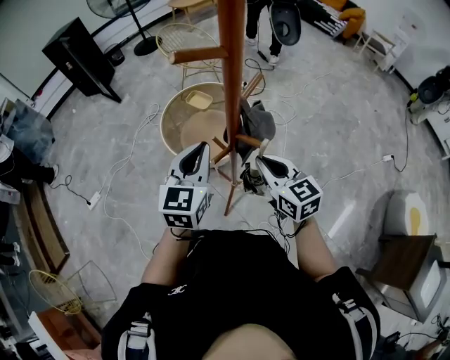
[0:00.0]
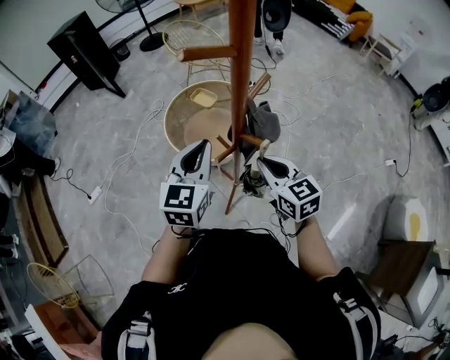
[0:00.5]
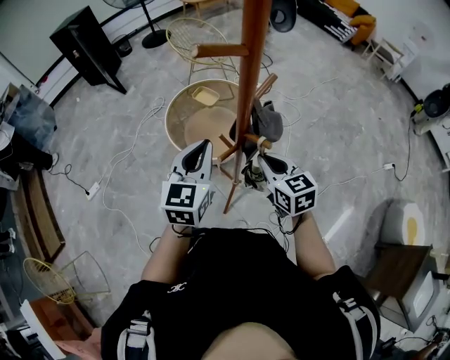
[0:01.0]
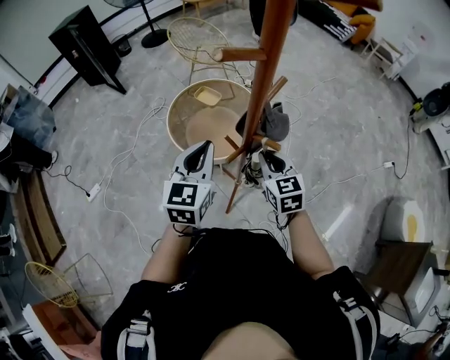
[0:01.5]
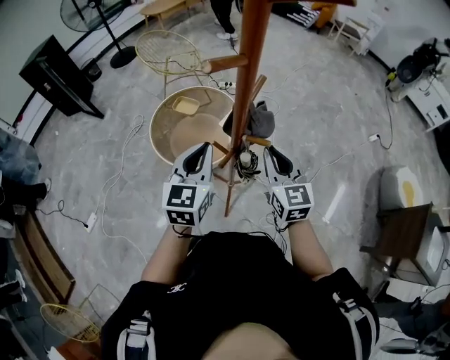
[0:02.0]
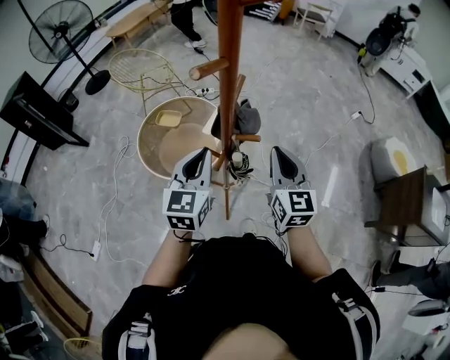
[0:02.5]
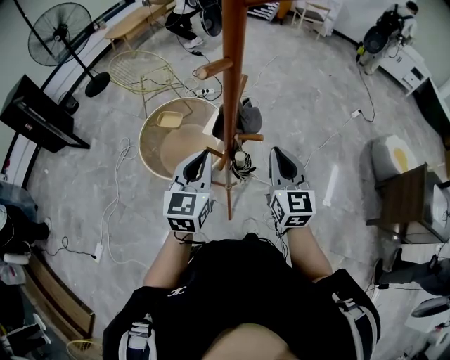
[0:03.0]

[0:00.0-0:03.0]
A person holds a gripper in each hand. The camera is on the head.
0:00.0 to 0:01.5: The right gripper shifts by approximately 5 cm.
0:01.5 to 0:03.0: The right gripper goes some 10 cm upward, and swivels approximately 40 degrees; the left gripper rotates approximately 20 degrees.

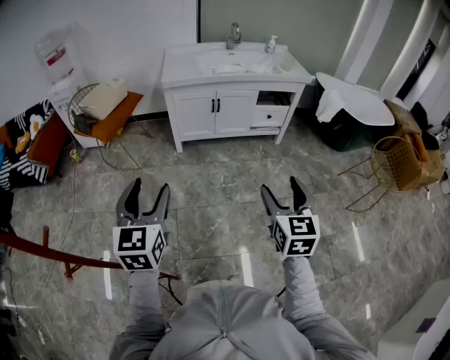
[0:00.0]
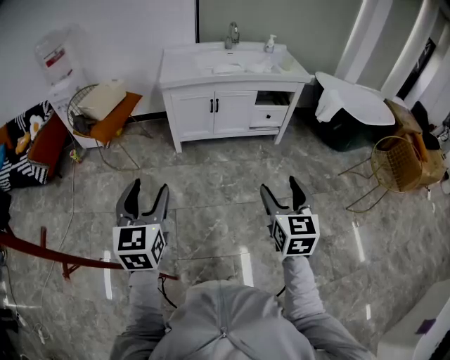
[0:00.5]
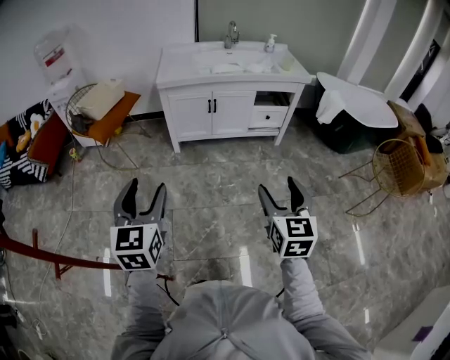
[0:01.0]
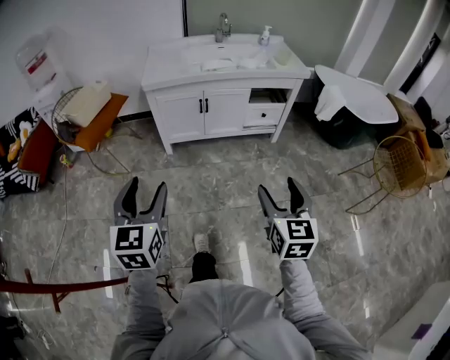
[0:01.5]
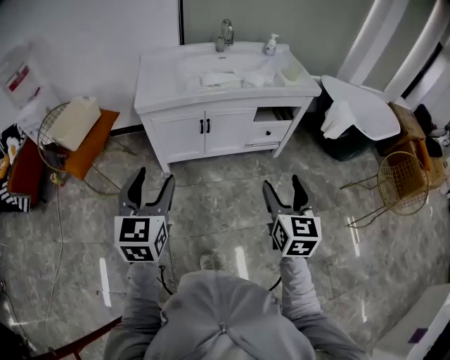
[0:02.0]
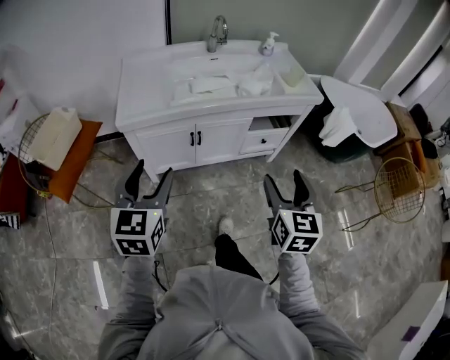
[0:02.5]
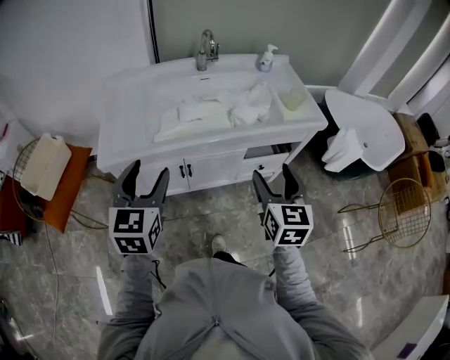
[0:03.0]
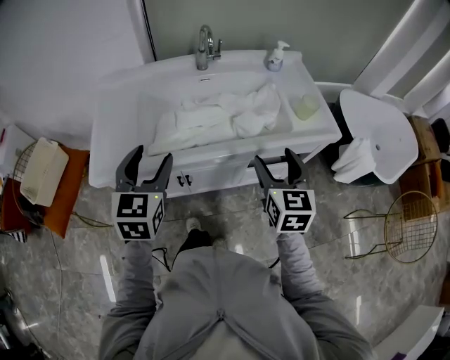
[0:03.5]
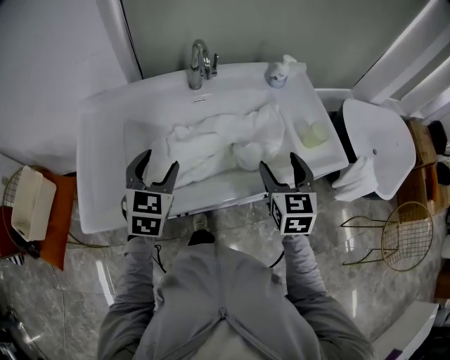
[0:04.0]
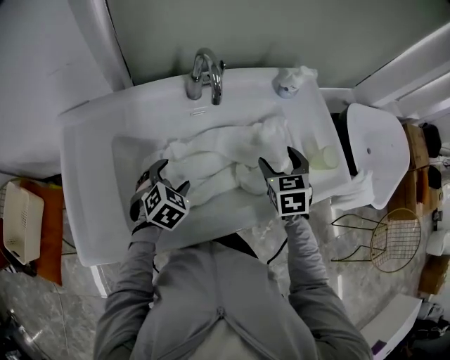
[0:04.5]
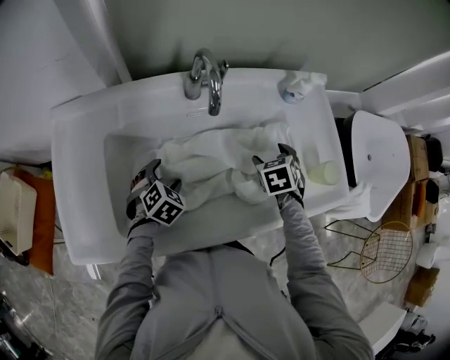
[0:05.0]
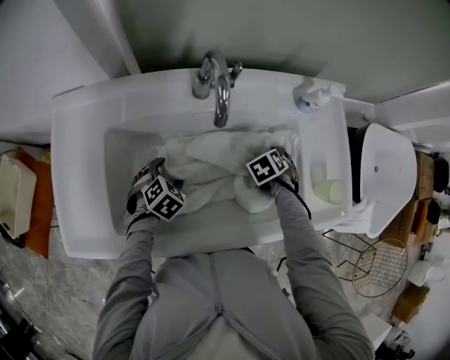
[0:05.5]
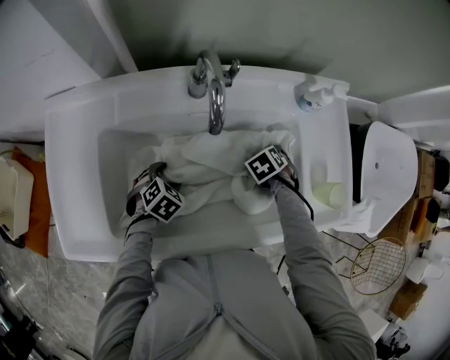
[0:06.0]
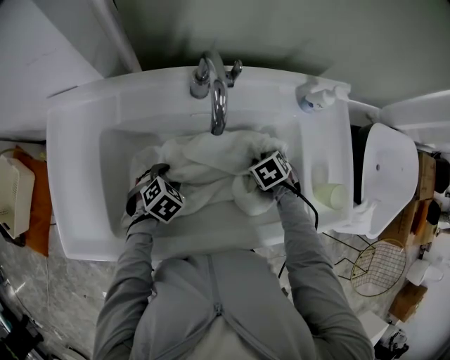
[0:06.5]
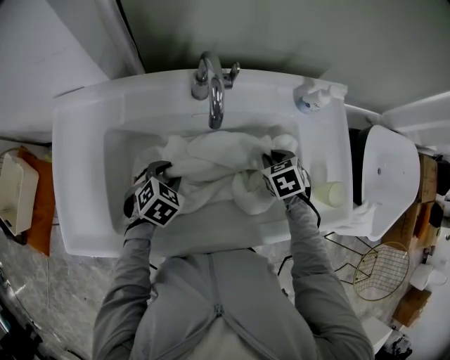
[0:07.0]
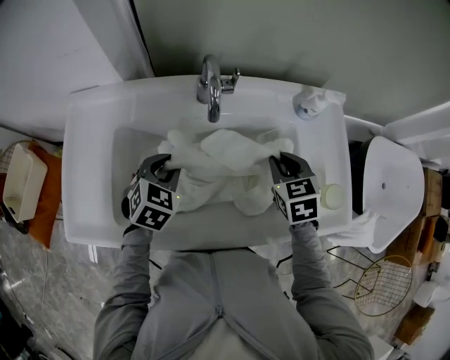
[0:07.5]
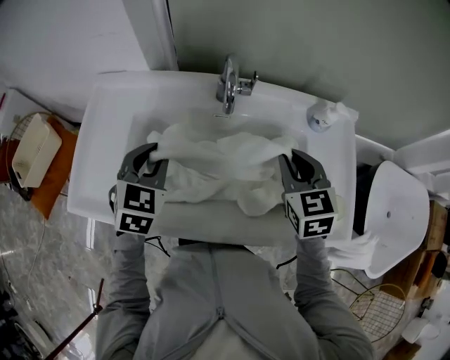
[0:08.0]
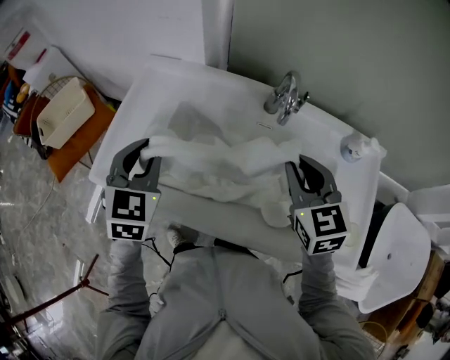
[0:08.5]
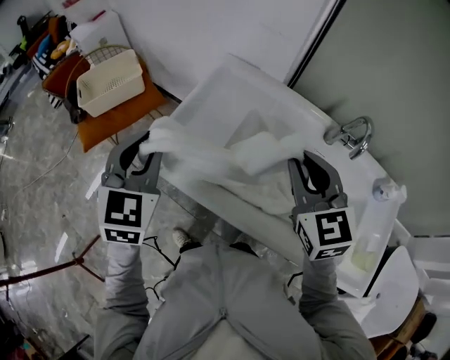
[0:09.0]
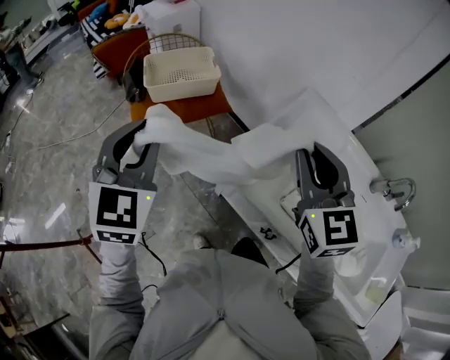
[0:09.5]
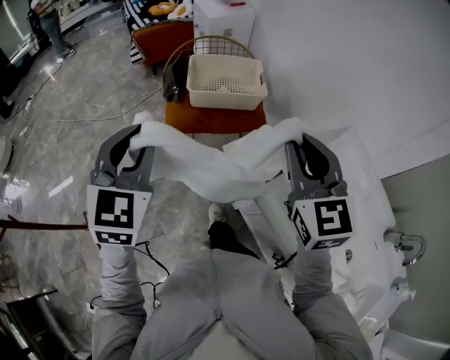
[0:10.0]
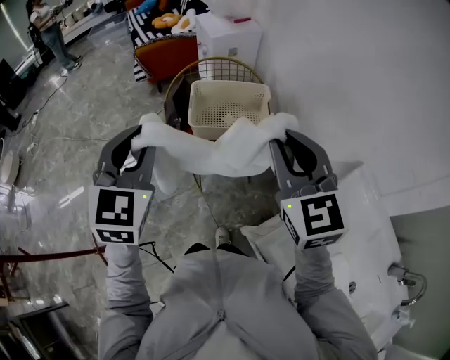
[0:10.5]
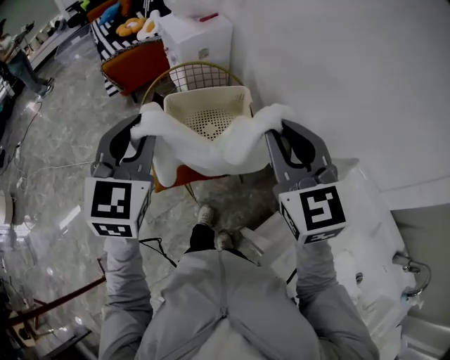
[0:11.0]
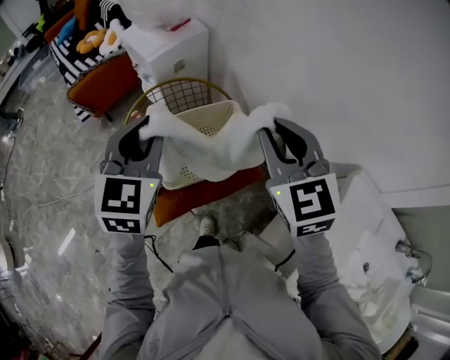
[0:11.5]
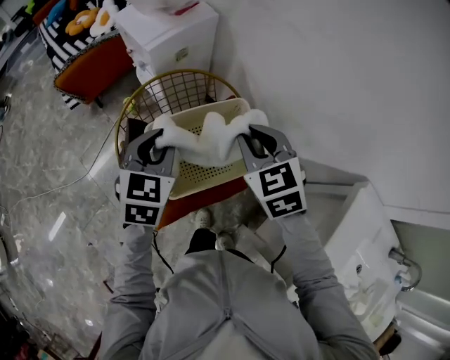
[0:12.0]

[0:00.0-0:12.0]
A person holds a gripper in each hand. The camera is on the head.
0:00.0 to 0:02.0: Both grippers travel together forward, some 30 cm.
0:02.0 to 0:04.0: The two grippers travel together, forward, some 60 cm.
0:04.0 to 0:06.0: Both grippers travel together downward, some 25 cm. The right gripper tilts its fingers about 60 degrees downward. Meanwhile the left gripper tips its fingers downward by some 40 degrees.
0:06.0 to 0:08.0: Both grippers travel together upward, roughly 25 cm. The right gripper tips its fingers upward by about 50 degrees, and closes. Meanwhile the left gripper angles its fingers upward, by approximately 30 degrees, and closes its fingers.
0:08.0 to 0:10.0: The pair of grippers is taken roughly 70 cm. The left gripper turns by about 60 degrees. Meanwhile the right gripper changes its angle by approximately 60 degrees.
0:10.0 to 0:12.0: The pair of grippers is taken forward, about 50 cm. The left gripper rotates roughly 30 degrees. The right gripper changes its angle by about 30 degrees.

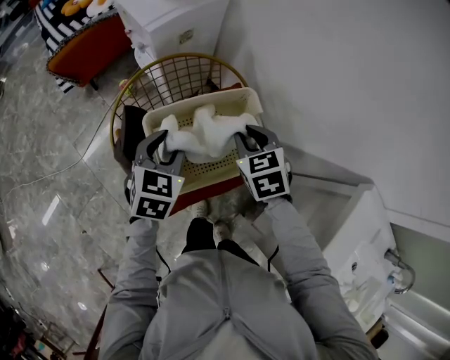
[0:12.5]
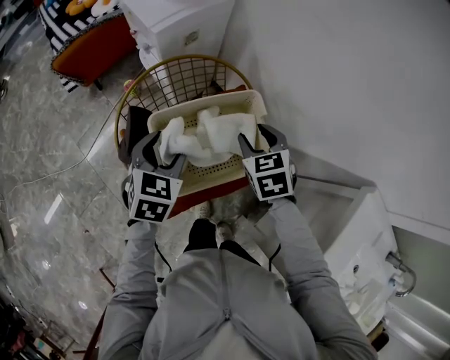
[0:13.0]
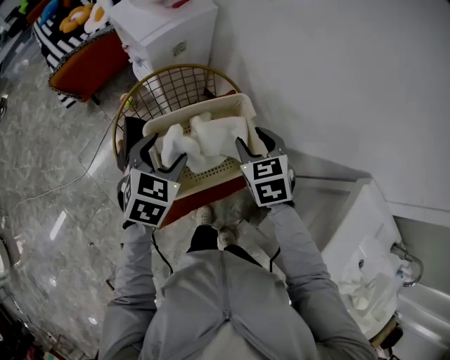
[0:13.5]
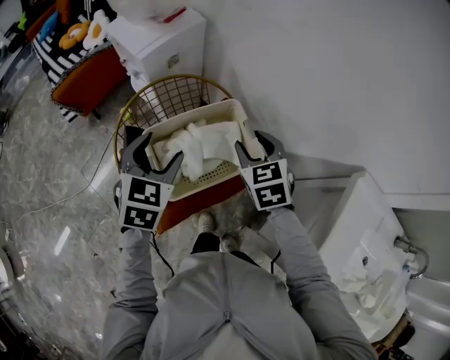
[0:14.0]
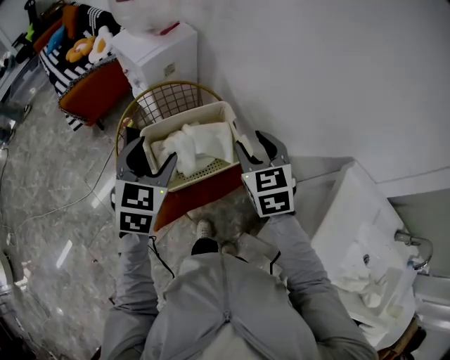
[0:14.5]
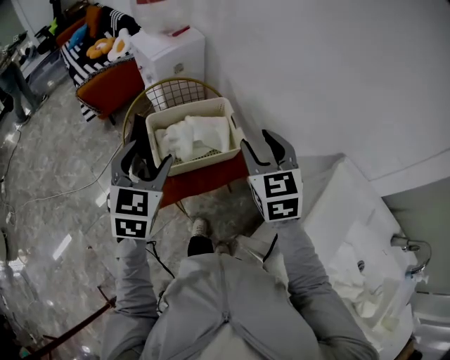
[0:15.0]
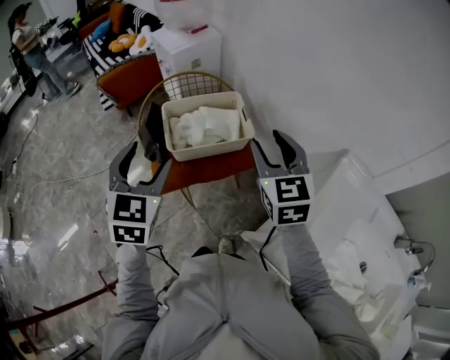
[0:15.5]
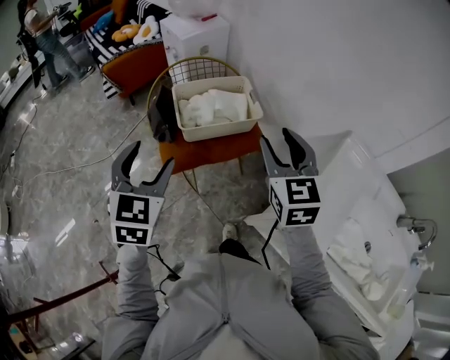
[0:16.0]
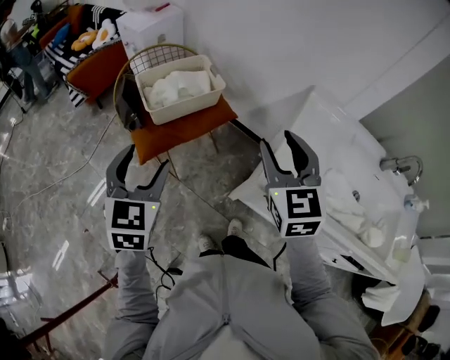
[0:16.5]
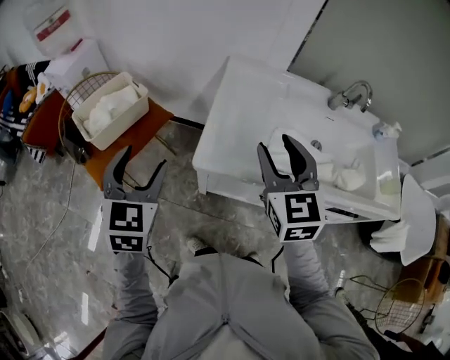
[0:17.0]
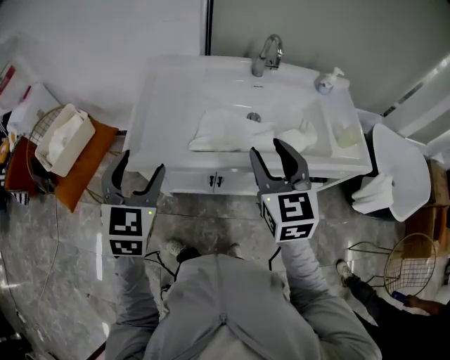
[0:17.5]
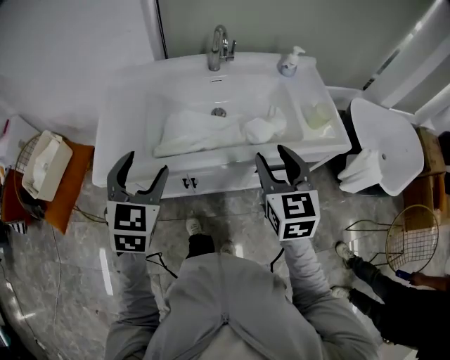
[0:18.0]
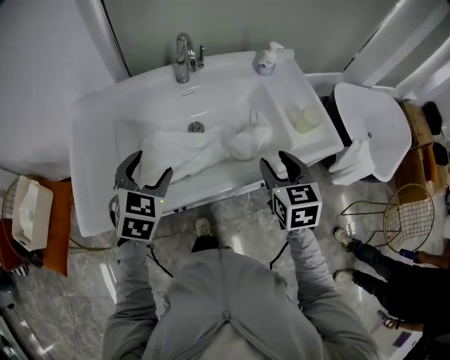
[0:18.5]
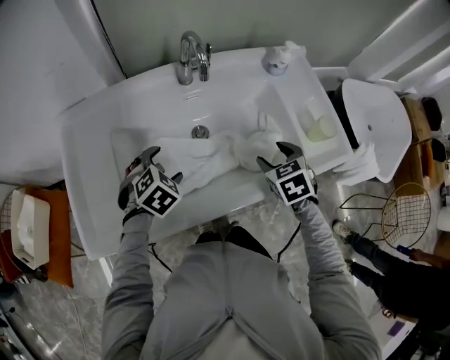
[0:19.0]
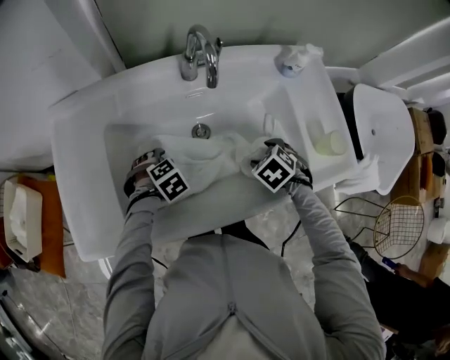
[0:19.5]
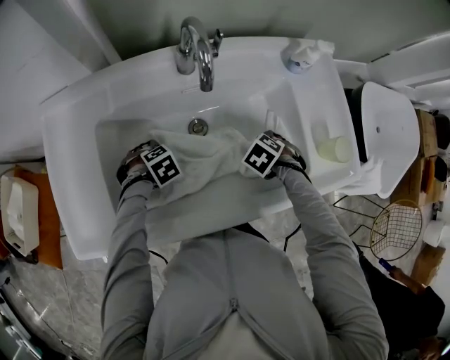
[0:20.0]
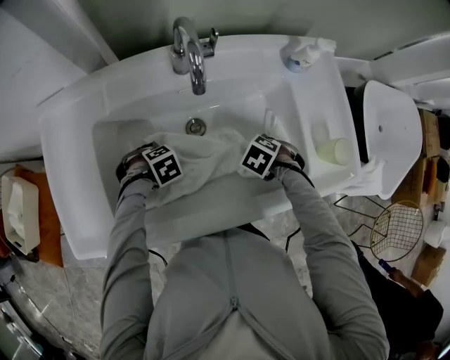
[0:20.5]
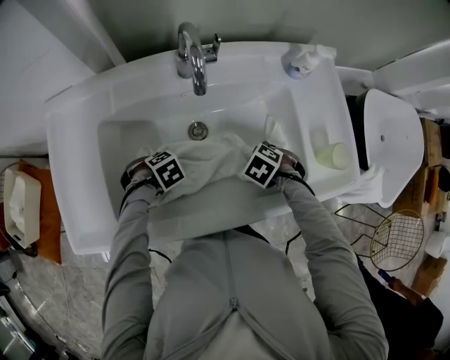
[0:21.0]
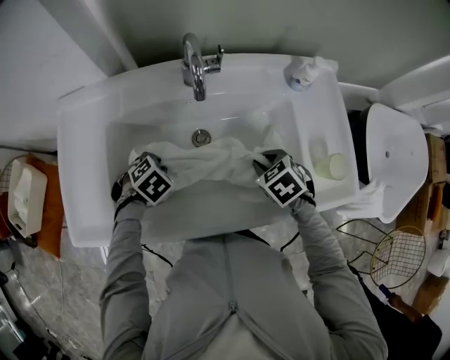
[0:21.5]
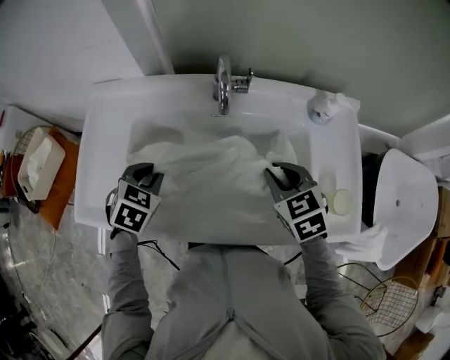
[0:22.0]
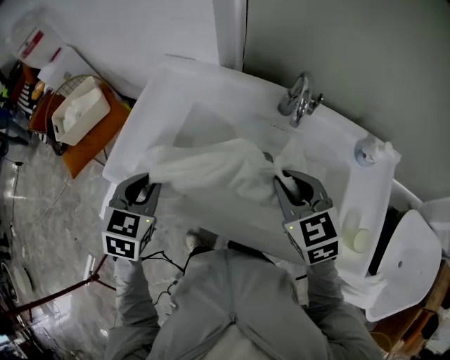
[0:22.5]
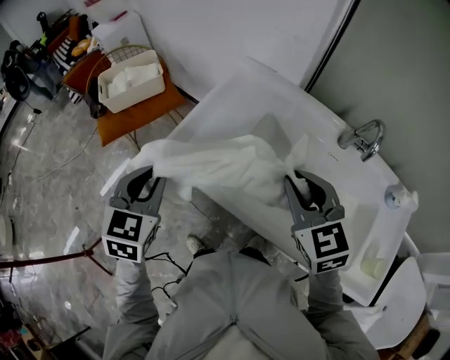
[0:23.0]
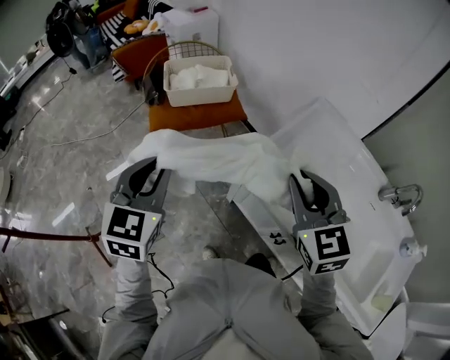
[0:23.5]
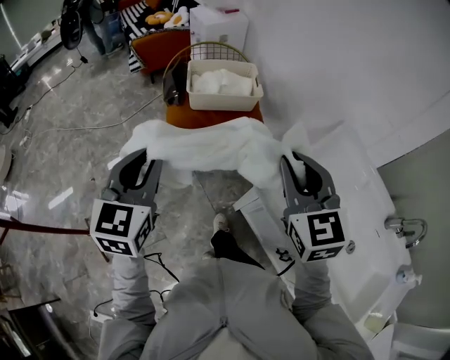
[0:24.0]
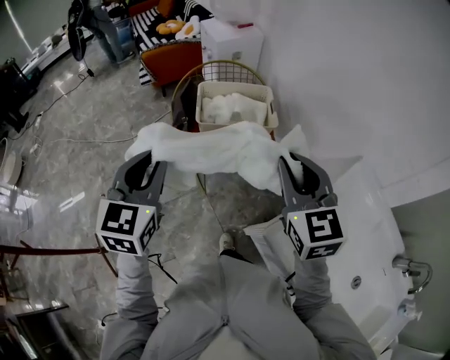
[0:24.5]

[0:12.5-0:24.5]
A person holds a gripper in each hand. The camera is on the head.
0:12.5 to 0:14.5: The right gripper goes roughly 15 cm upward, backward and to the right, changes its angle by roughly 20 degrees, and opens its fingers; the left gripper goes roughly 15 cm upward and backward, and opens.
0:14.5 to 0:16.5: The grippers both shift backward by approximately 35 cm.
0:16.5 to 0:18.5: Both grippers are carried some 70 cm. The right gripper rotates roughly 60 degrees, while the left gripper swivels some 60 degrees.
0:18.5 to 0:20.5: The grippers both shift downward by about 25 cm. The left gripper tilts its fingers approximately 50 degrees downward; the right gripper angles its fingers downward, by approximately 60 degrees.
0:20.5 to 0:22.5: Both grippers move upward, approximately 30 cm. The left gripper tilts its fingers about 40 degrees upward, and closes up, while the right gripper tips its fingers upward by some 50 degrees.
0:22.5 to 0:24.5: Both grippers are carried about 60 cm. The right gripper turns by approximately 30 degrees. The left gripper rotates roughly 50 degrees.
